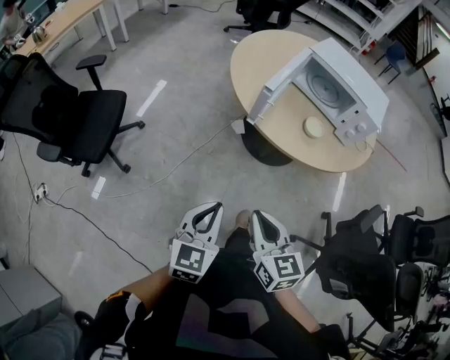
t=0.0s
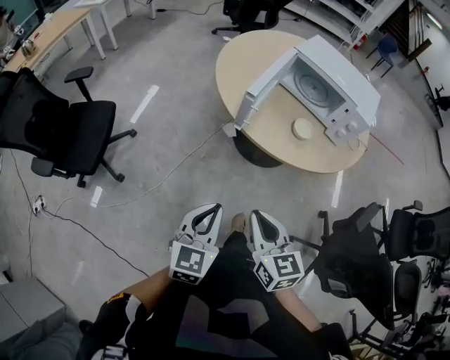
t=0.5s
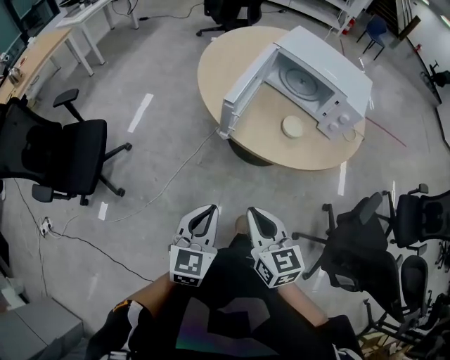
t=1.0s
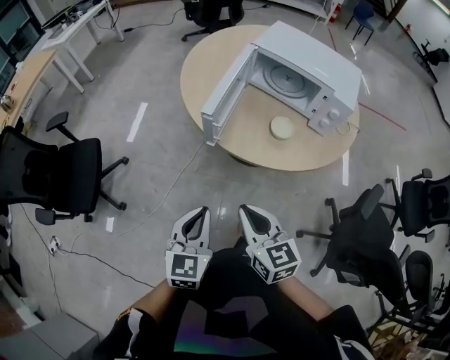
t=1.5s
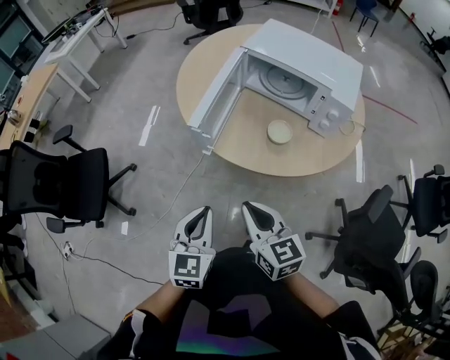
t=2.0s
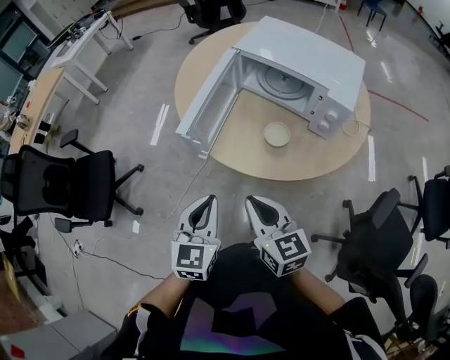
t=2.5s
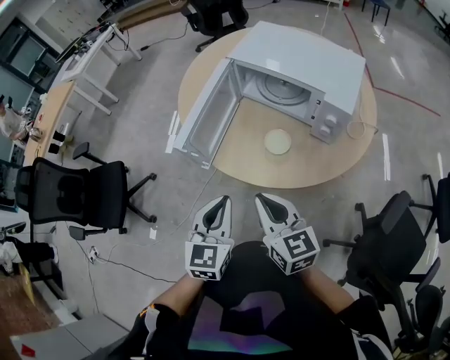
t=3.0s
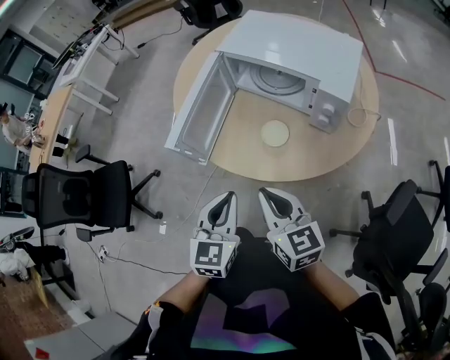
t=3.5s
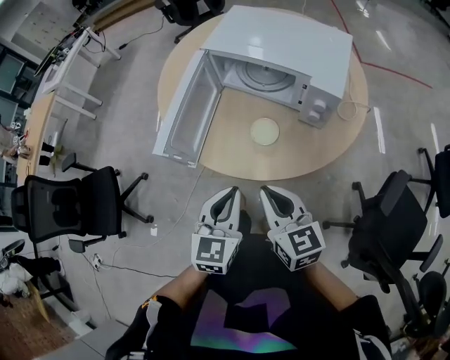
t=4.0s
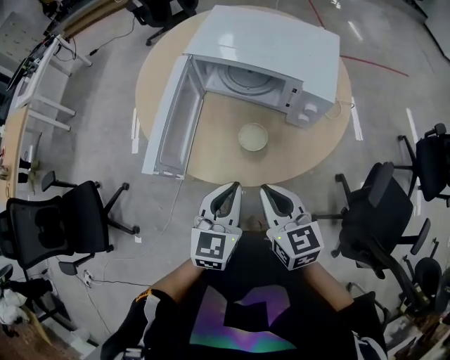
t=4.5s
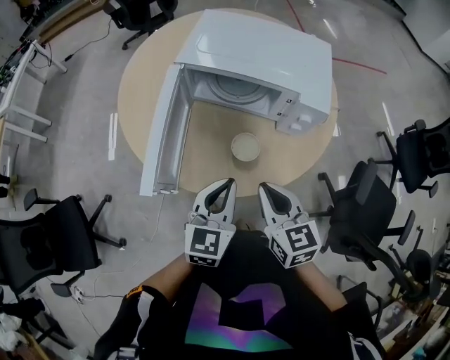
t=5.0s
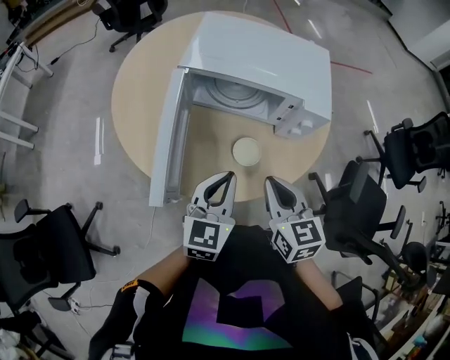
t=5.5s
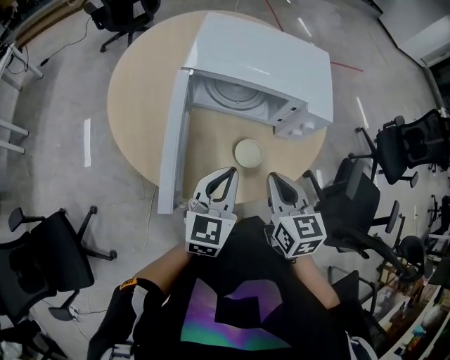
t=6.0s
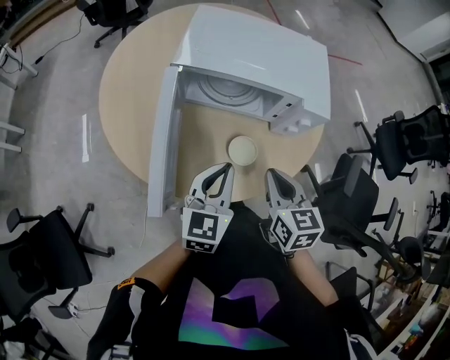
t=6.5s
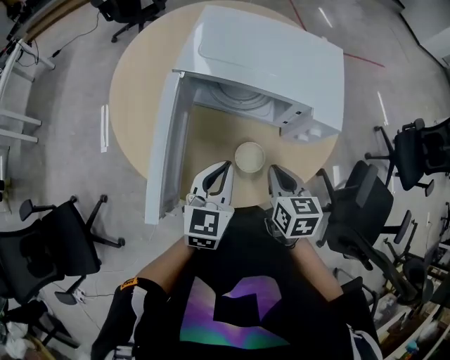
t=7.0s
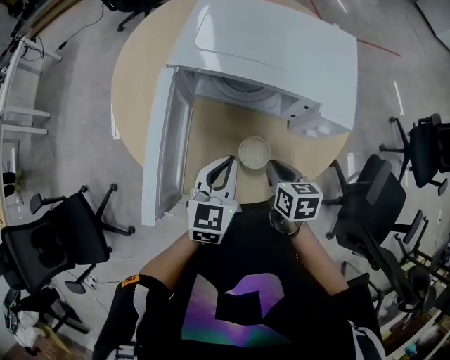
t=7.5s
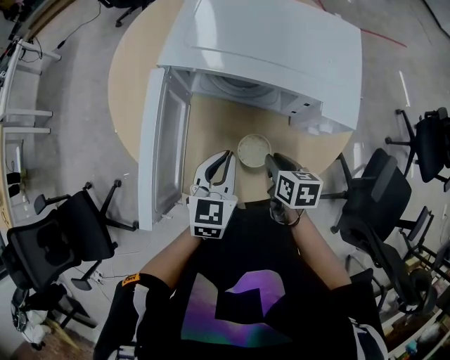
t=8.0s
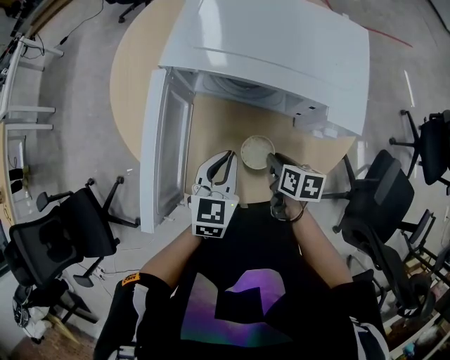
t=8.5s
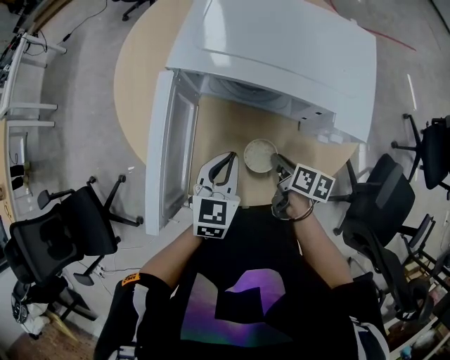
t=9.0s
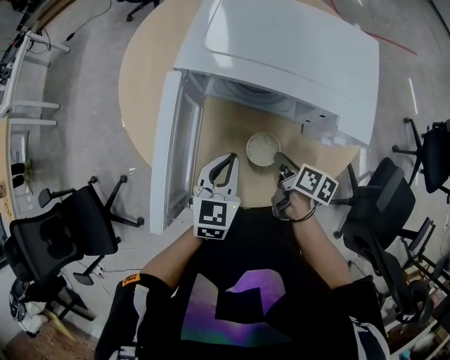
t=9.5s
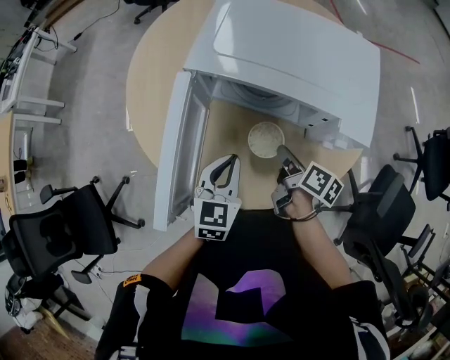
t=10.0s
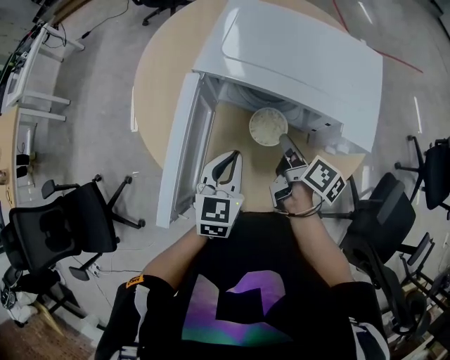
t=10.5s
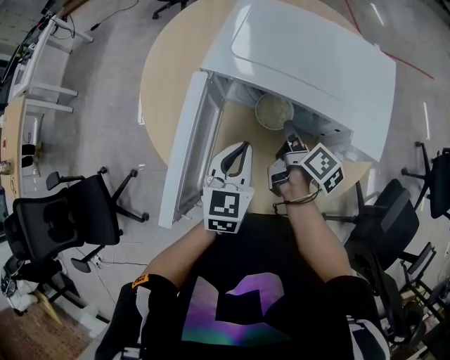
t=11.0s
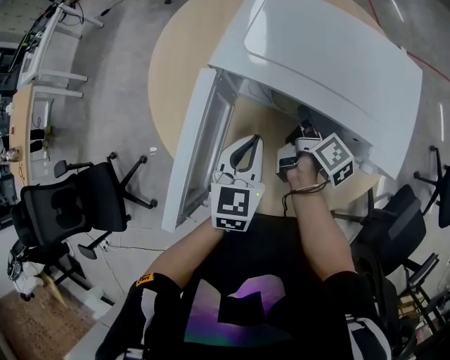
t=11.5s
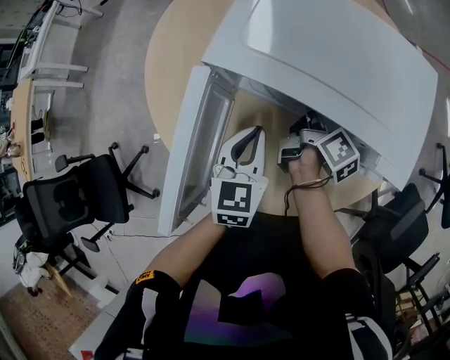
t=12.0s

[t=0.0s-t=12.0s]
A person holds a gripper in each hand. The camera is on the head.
t=0.0s to t=2.0s: Both grippers travel together forward and to the right, approximately 20 cm.
t=2.0s to t=4.0s: Both grippers move to the right and forward, roughly 15 cm.
t=4.0s to t=6.0s: The right gripper ends up some 15 cm from where it was, and changes its angle by some 30 degrees, while the left gripper ends up some 15 cm from where it was, and changes its angle by some 20 degrees.
t=6.0s to t=8.0s: The left gripper travels downward and forward by roughly 10 cm, while the right gripper moves downward and forward, roughly 20 cm, and turns by approximately 30 degrees.
t=8.0s to t=10.0s: The right gripper is displaced forward by approximately 5 cm, and swivels some 40 degrees.
t=10.0s to t=12.0s: The left gripper heads forward, covering some 10 cm. Meanwhile the right gripper moves forward, about 15 cm.

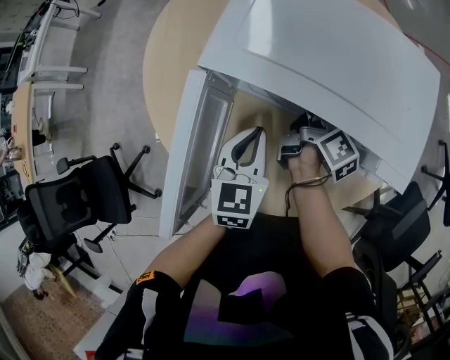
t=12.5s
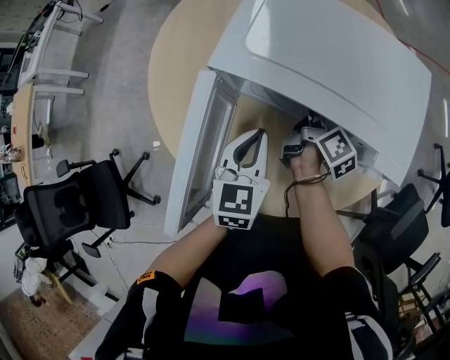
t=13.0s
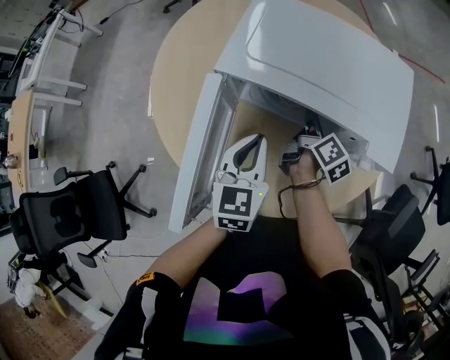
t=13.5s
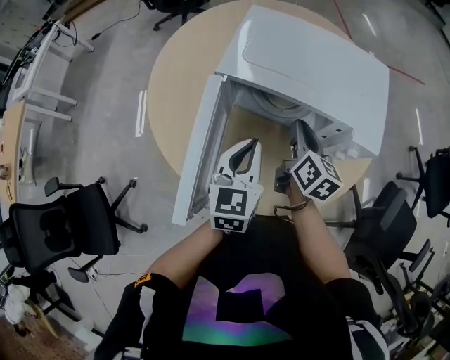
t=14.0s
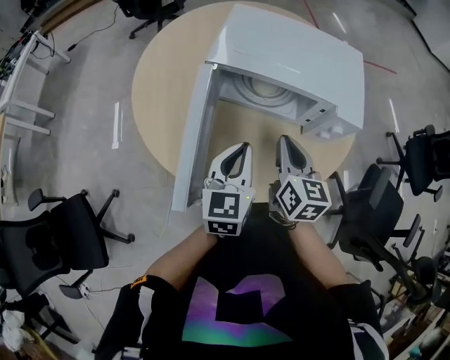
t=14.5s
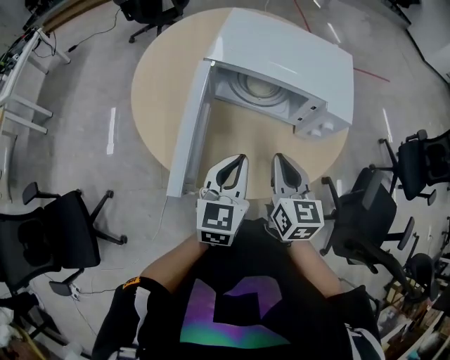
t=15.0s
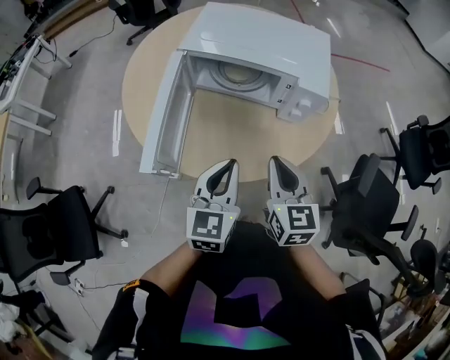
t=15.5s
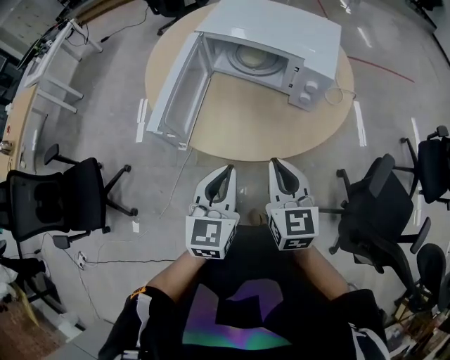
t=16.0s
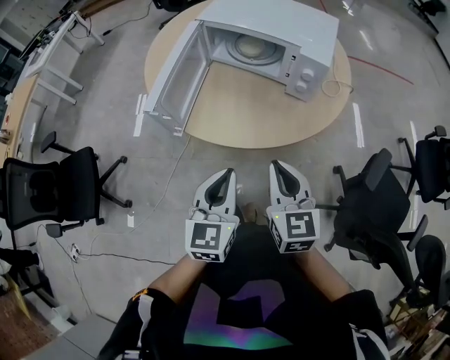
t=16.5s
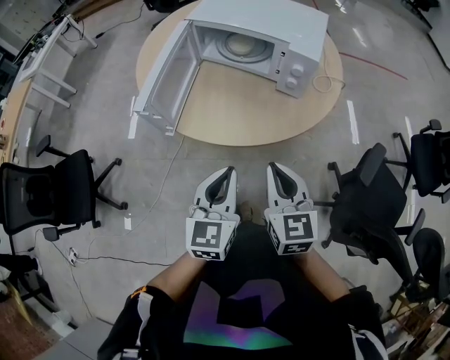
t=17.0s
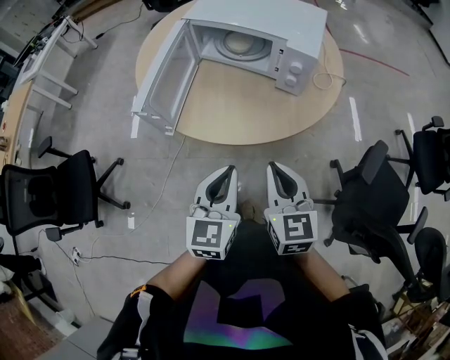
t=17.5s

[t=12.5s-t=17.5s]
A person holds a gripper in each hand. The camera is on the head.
t=12.5s to t=15.0s: The right gripper moves backward and upward, about 30 cm, and rolls counterclockwise, seen from behind, by some 70 degrees. The left gripper travels backward and upward by about 20 cm.
t=15.0s to t=17.5s: The two grippers go approximately 25 cm backward and to the right.

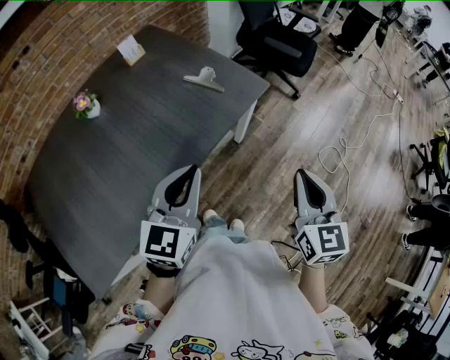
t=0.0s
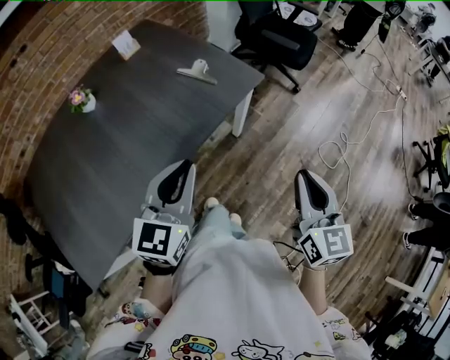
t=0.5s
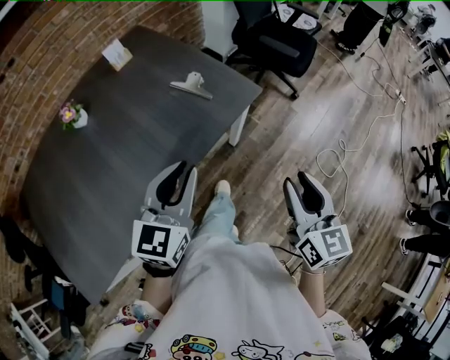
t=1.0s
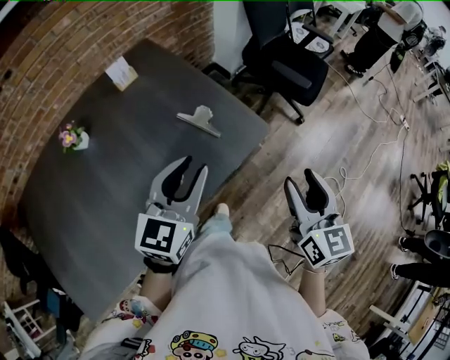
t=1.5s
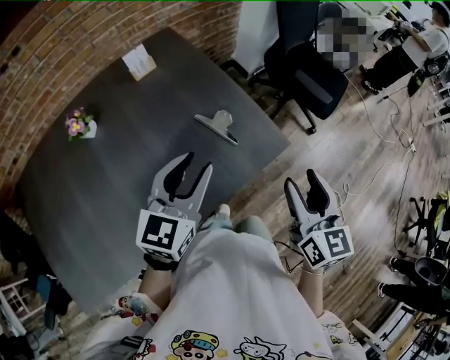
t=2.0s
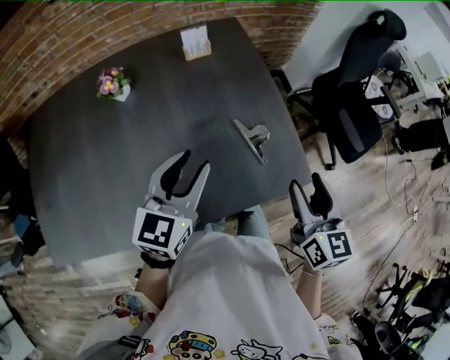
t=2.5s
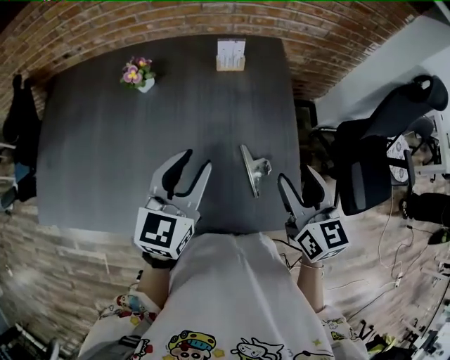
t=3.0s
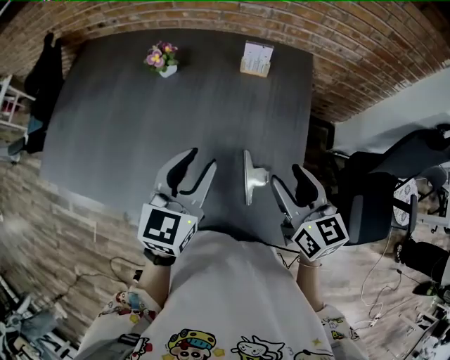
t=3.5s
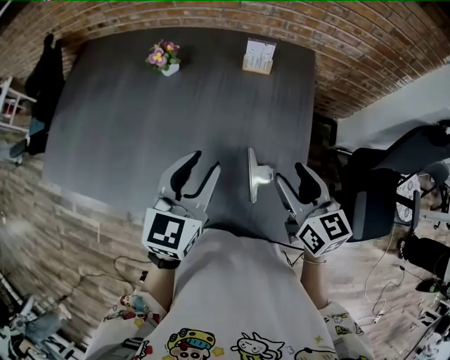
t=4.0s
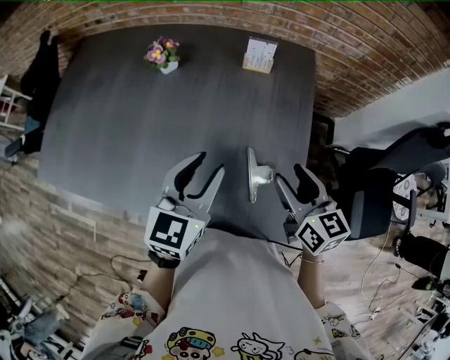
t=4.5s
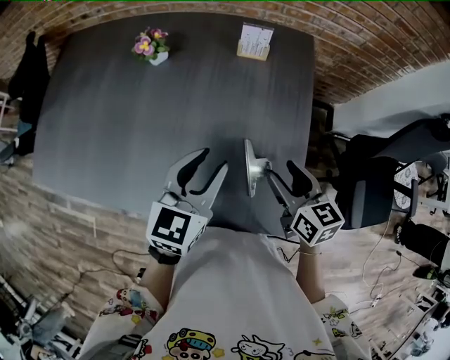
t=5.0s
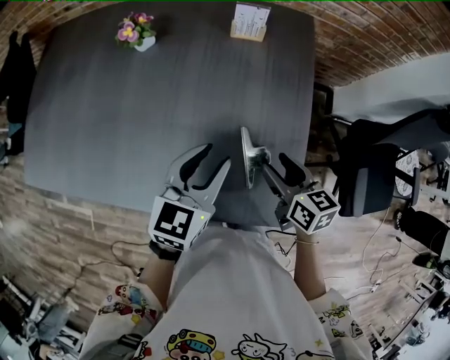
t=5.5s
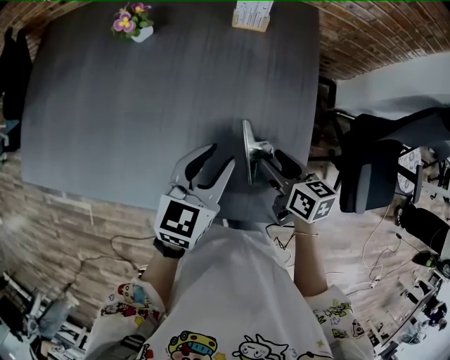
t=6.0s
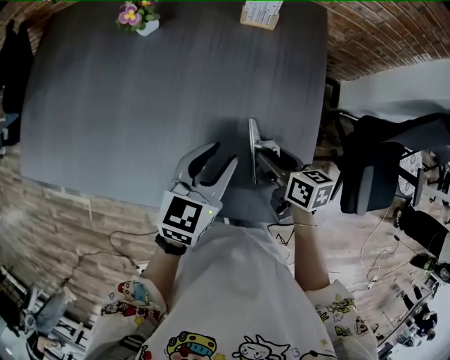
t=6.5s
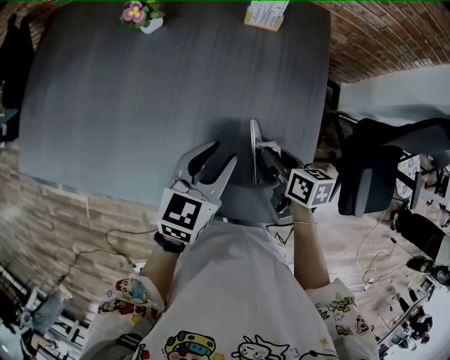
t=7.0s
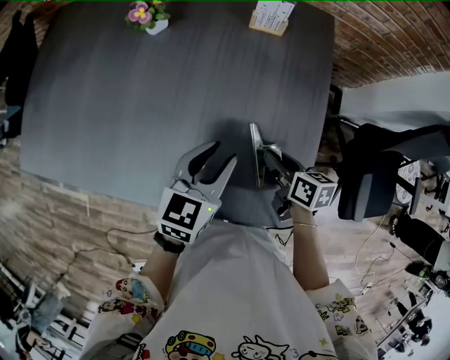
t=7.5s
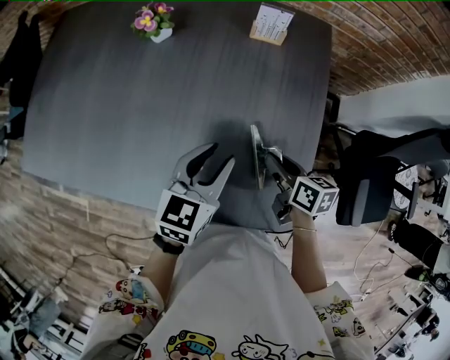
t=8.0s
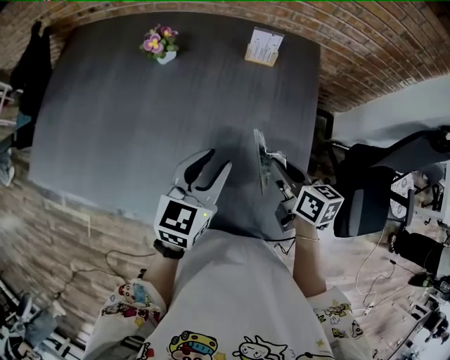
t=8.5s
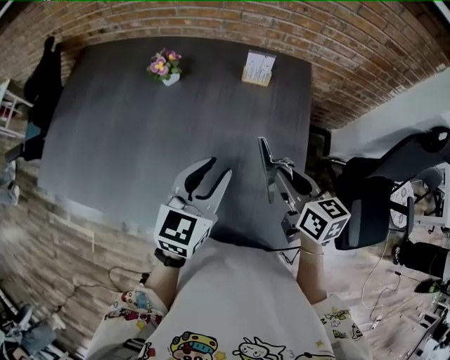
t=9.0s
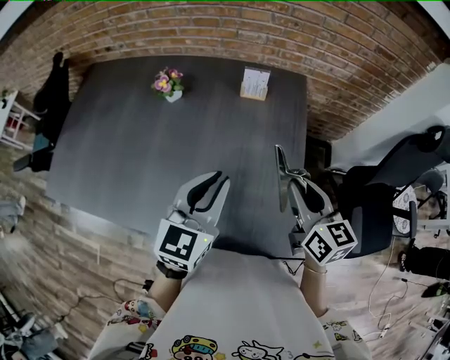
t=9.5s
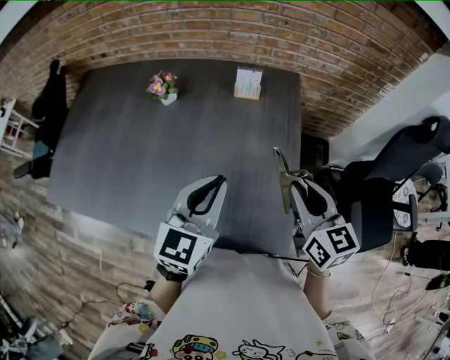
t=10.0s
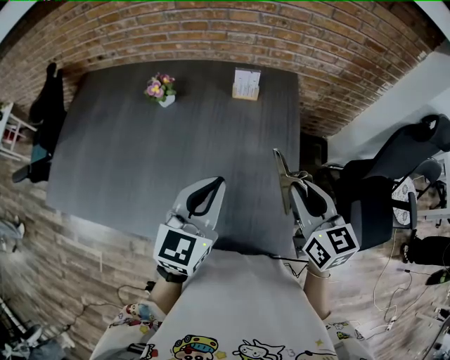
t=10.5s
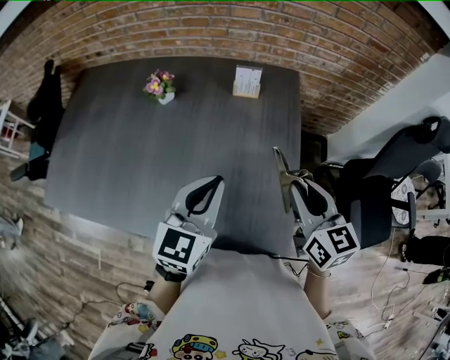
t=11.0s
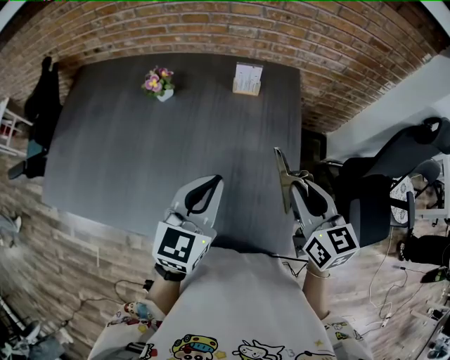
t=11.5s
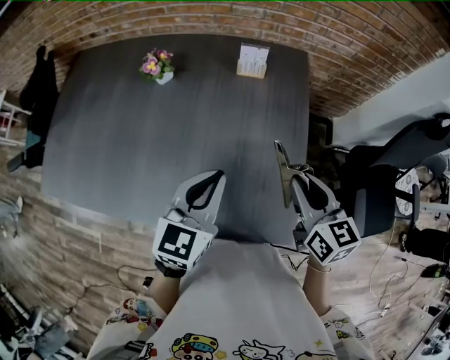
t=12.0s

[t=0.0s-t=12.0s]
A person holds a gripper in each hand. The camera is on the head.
t=0.0s to t=2.0s: Both grippers move forward, approximately 25 cm. The left gripper opens its fingers, while the right gripper opens up.
t=2.0s to t=4.0s: The left gripper shifts by roughly 10 cm, and turns by about 50 degrees. The right gripper changes place by about 25 cm, and turns by approximately 60 degrees.
t=4.0s to t=6.0s: The right gripper goes approximately 15 cm downward, and swivels roughly 30 degrees, while the left gripper shifts roughly 10 cm downward and to the right.
t=6.0s to t=8.0s: The right gripper closes up.
t=8.0s to t=10.0s: The right gripper travels upward by approximately 20 cm, and rotates approximately 40 degrees, while the left gripper heads upward, covering approximately 15 cm, and closes up.
t=10.0s to t=12.0s: The grippers make only small movements.
